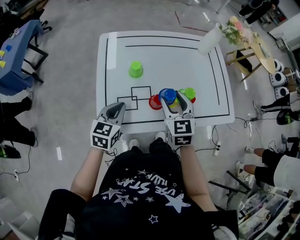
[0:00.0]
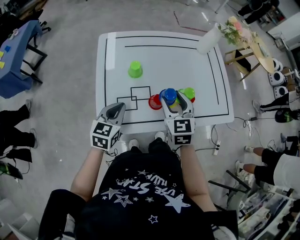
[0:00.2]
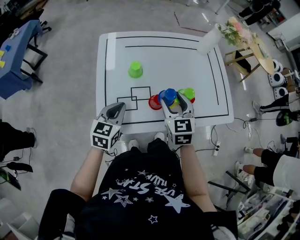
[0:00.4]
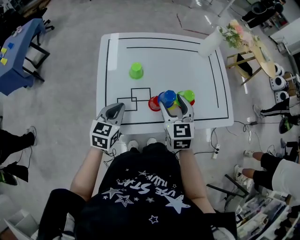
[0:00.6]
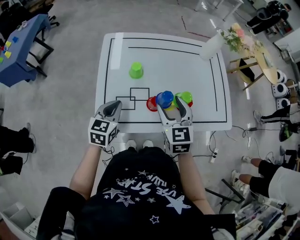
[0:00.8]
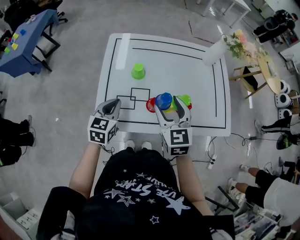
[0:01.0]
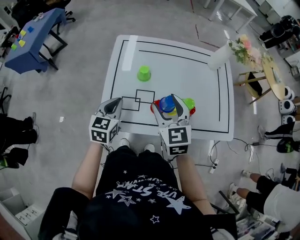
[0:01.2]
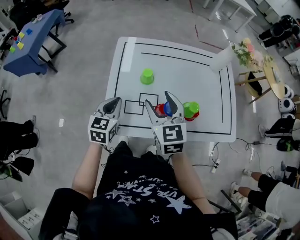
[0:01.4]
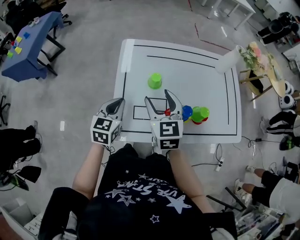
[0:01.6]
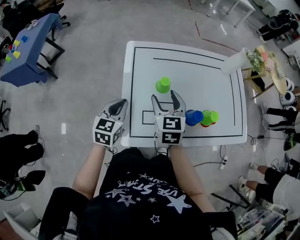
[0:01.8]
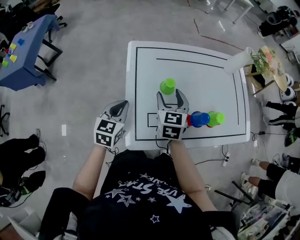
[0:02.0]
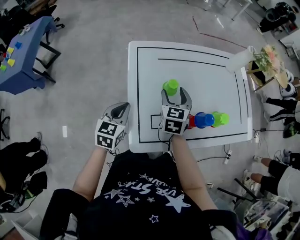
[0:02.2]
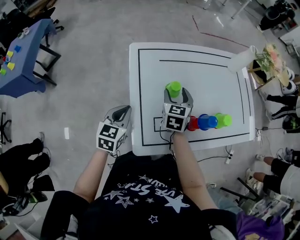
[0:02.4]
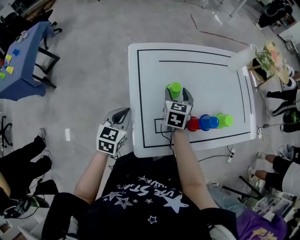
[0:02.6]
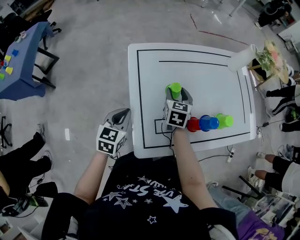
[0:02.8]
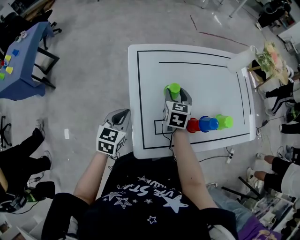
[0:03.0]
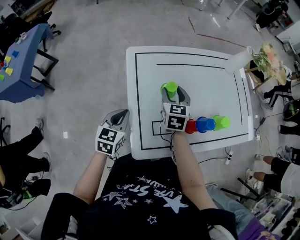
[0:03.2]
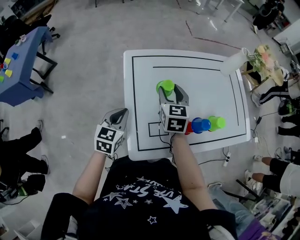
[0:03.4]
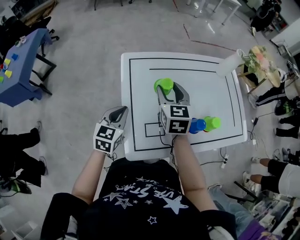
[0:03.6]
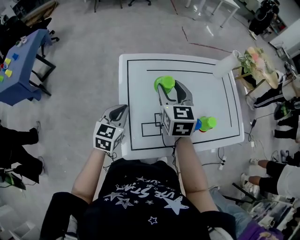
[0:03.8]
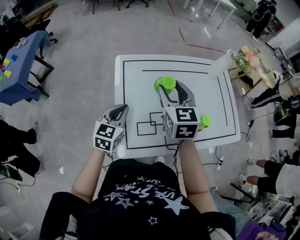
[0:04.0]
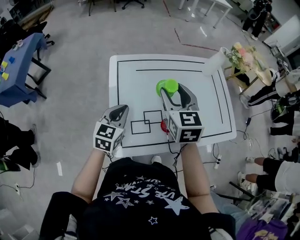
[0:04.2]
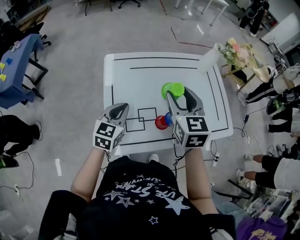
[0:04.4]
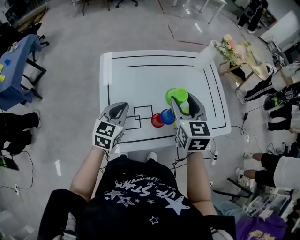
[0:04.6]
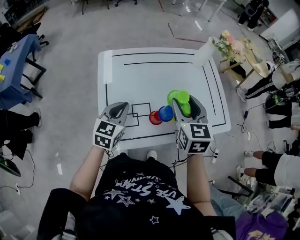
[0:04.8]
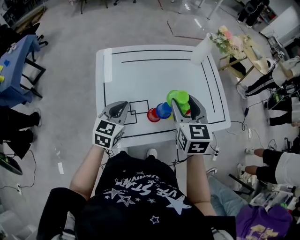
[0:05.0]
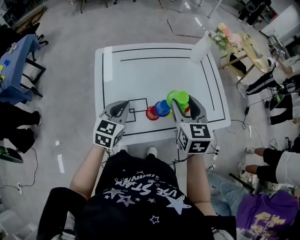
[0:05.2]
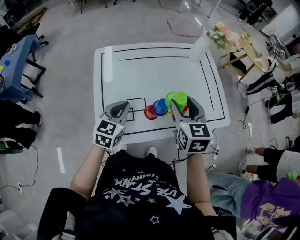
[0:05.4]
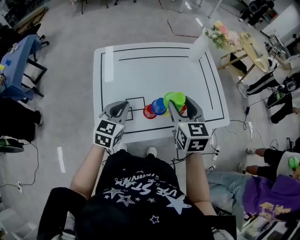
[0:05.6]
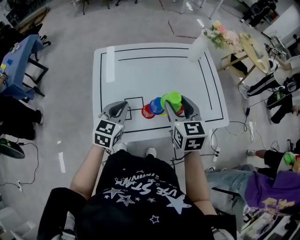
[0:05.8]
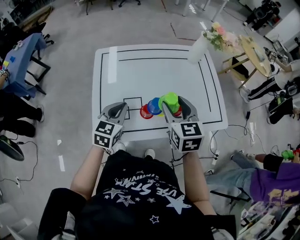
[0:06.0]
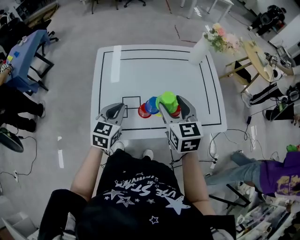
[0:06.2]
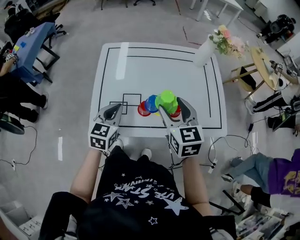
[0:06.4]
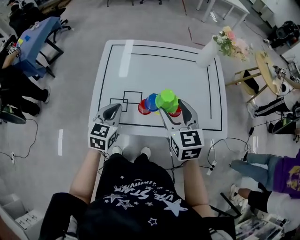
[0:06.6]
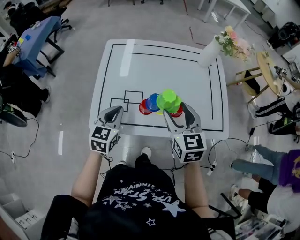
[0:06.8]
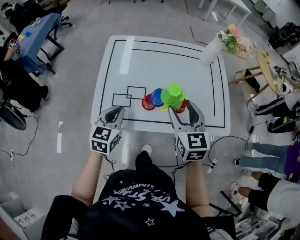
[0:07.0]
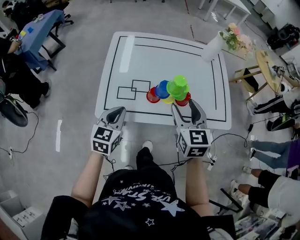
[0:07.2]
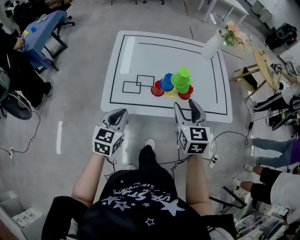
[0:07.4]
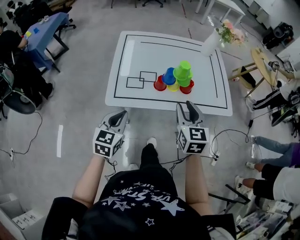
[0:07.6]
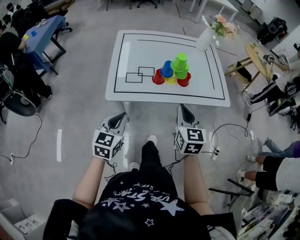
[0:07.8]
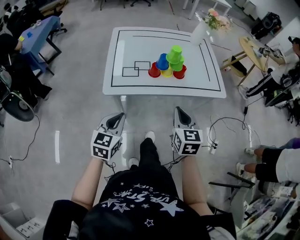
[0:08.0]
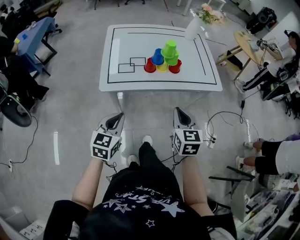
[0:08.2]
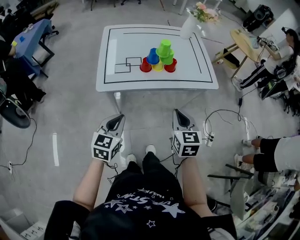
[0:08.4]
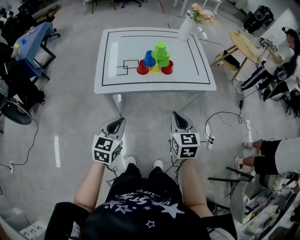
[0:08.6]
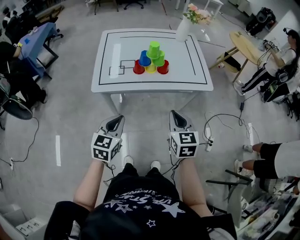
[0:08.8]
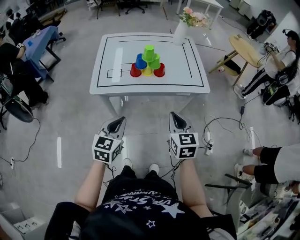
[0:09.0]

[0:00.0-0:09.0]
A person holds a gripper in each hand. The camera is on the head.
0.0 to 1.6 s: The left gripper moves to the left, some 10 cm; the right gripper heads to the left, covering about 15 cm.
1.6 to 3.0 s: The right gripper goes about 20 cm downward and forward, and turns by approximately 30 degrees; the left gripper heads to the left and downward, covering about 10 cm.
3.0 to 4.4 s: The right gripper goes roughly 25 cm upward and to the right, while the left gripper is displaced to the right and upward by roughly 15 cm.
4.4 to 6.0 s: The left gripper is displaced to the right by approximately 10 cm. Meanwhile the right gripper travels to the right, downward and backward by roughly 15 cm.
6.0 to 7.6 s: The two grippers go roughly 20 cm backward.
7.6 to 9.0 s: The left gripper shifts about 20 cm to the right and backward. The right gripper goes about 20 cm backward and to the right, and closes its fingers.

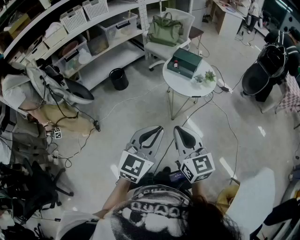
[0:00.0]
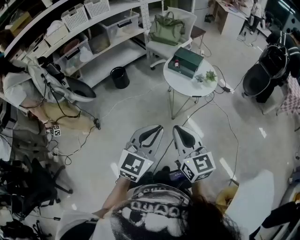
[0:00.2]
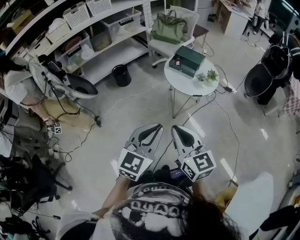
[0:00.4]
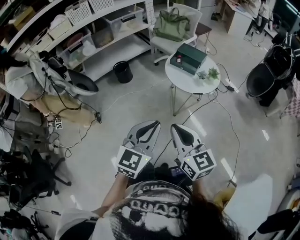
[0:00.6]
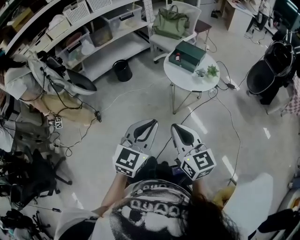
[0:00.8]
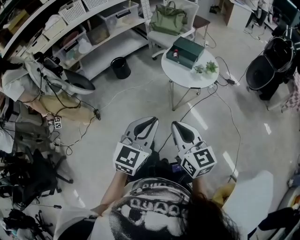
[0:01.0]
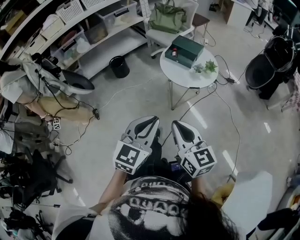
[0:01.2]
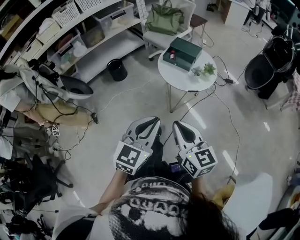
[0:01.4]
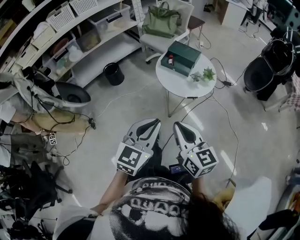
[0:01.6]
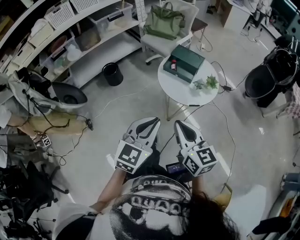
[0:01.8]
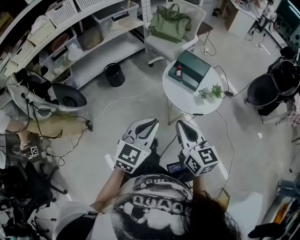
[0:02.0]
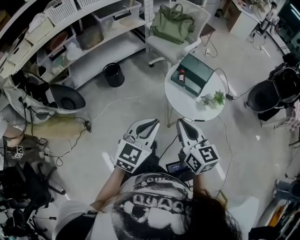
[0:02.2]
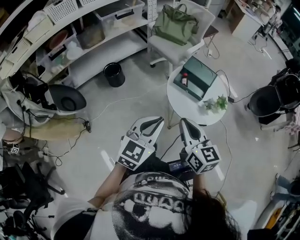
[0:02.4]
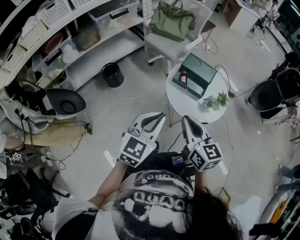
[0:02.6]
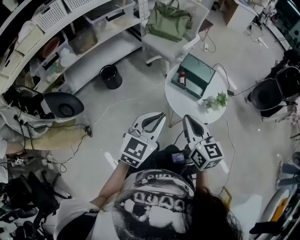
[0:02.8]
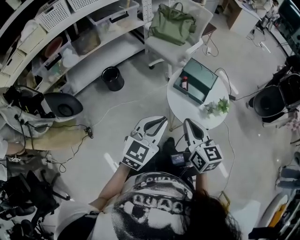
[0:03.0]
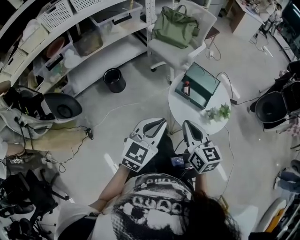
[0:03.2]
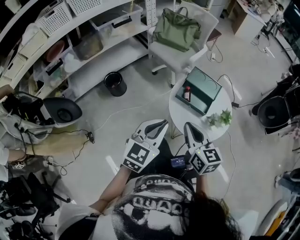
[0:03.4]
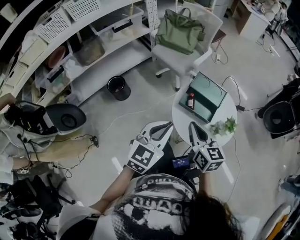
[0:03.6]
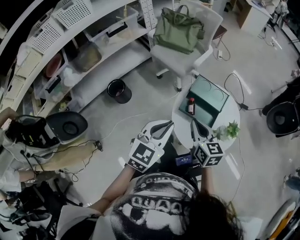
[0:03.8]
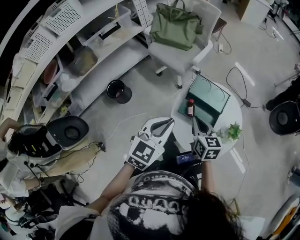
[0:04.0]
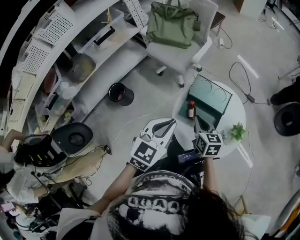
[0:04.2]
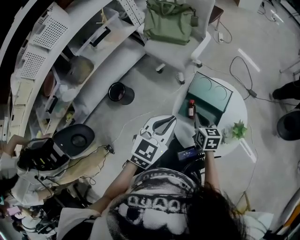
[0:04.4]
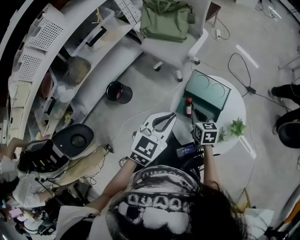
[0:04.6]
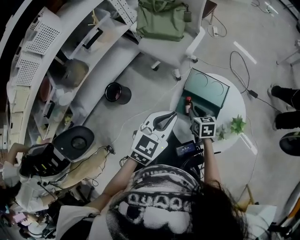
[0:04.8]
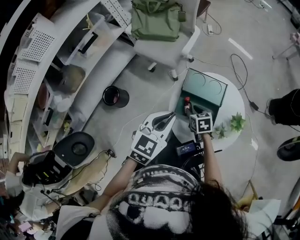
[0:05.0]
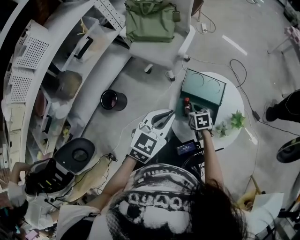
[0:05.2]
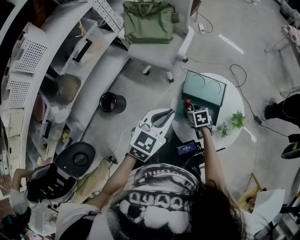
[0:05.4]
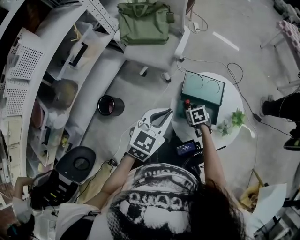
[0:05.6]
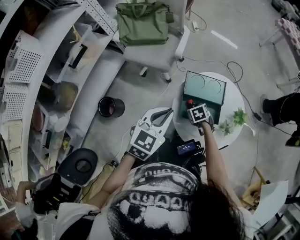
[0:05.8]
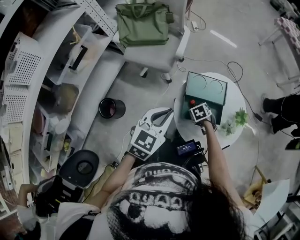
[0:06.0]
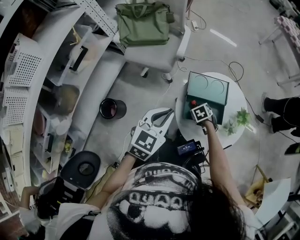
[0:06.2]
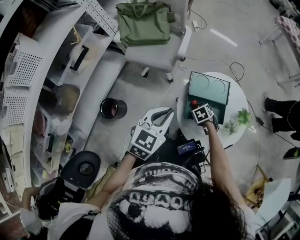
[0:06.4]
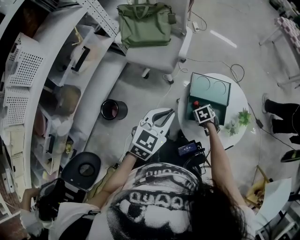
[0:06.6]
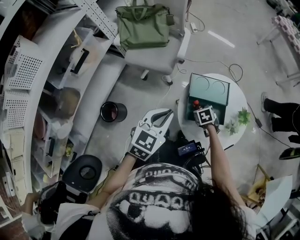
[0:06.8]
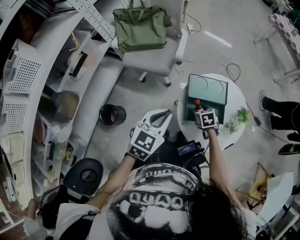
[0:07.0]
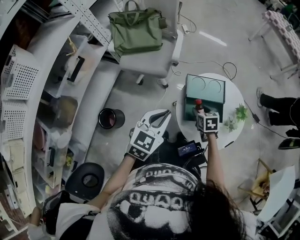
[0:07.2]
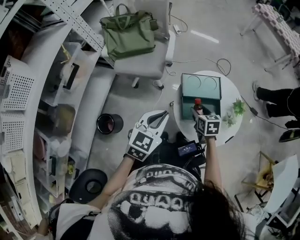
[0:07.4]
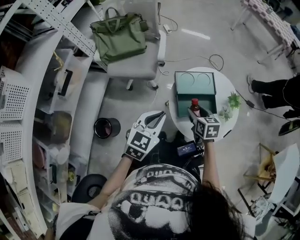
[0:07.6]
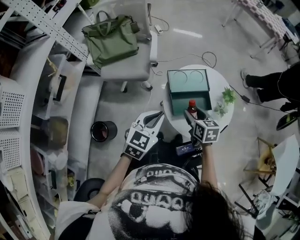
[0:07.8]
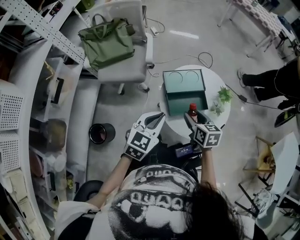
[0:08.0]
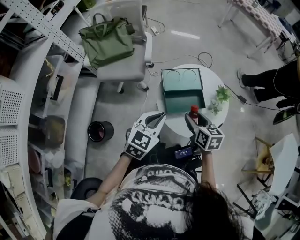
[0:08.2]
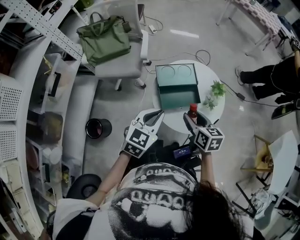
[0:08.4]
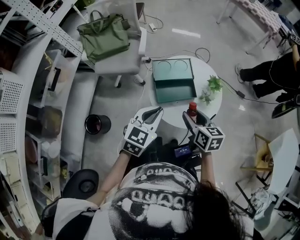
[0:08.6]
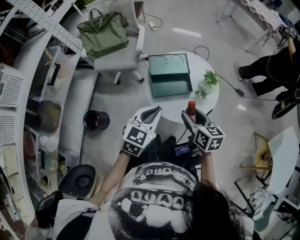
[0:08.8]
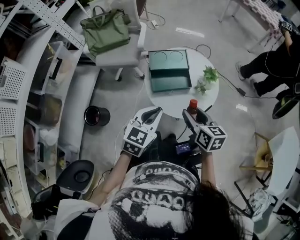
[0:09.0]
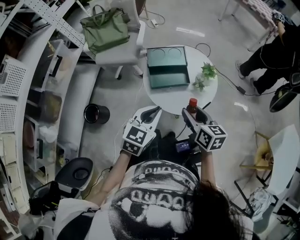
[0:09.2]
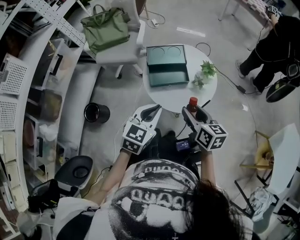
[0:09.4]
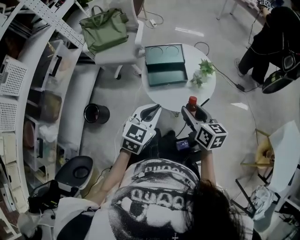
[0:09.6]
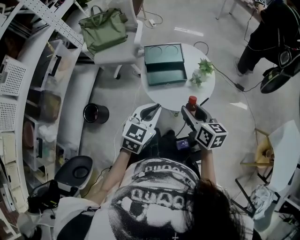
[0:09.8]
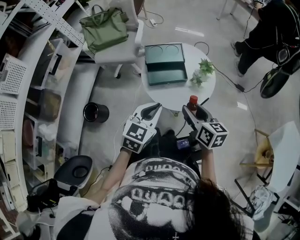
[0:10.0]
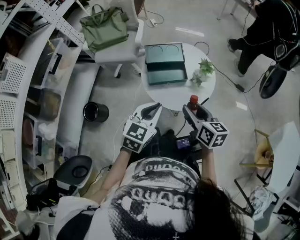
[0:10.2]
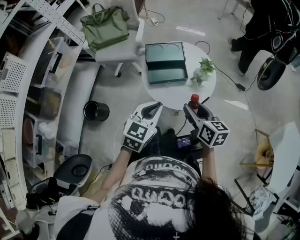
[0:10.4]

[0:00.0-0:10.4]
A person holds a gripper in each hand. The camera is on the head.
0.0 to 1.4 s: The left gripper travels forward and to the right by some 10 cm. Meanwhile the right gripper heads to the right, covering some 5 cm.
1.4 to 3.0 s: Both grippers move forward, approximately 30 cm.
3.0 to 4.4 s: The left gripper is displaced forward by roughly 25 cm. The right gripper travels forward and downward by approximately 35 cm, and swivels roughly 20 degrees.
4.4 to 6.0 s: The left gripper shifts by roughly 10 cm; the right gripper travels downward by some 15 cm, tips its fingers downward by roughly 40 degrees, and opens.
6.0 to 7.4 s: The right gripper travels upward by some 15 cm, and changes its angle by approximately 40 degrees.
7.4 to 9.0 s: The right gripper goes approximately 25 cm backward, to the right and upward, and turns by roughly 20 degrees, while the left gripper moves to the right and backward, some 20 cm.
9.0 to 10.4 s: The grippers stay close to where they were, moving slightly.

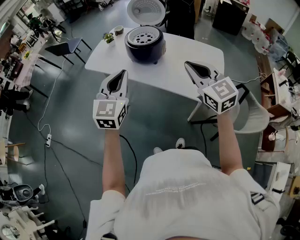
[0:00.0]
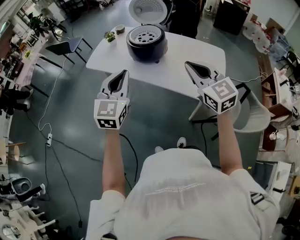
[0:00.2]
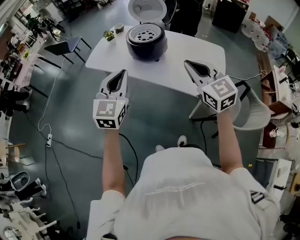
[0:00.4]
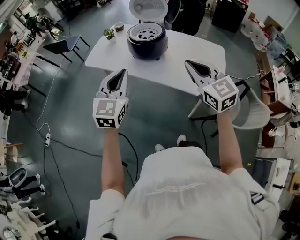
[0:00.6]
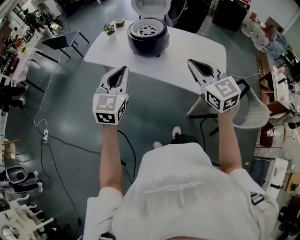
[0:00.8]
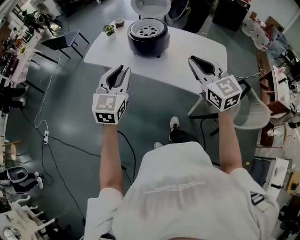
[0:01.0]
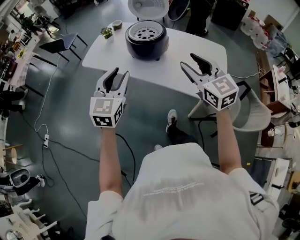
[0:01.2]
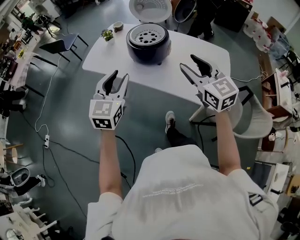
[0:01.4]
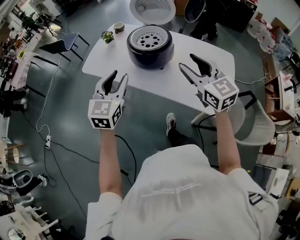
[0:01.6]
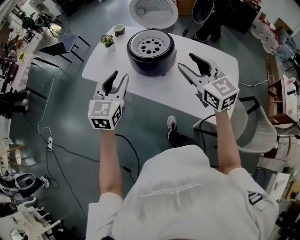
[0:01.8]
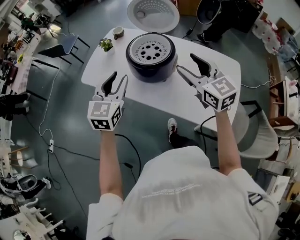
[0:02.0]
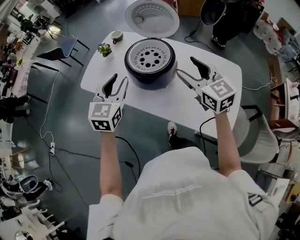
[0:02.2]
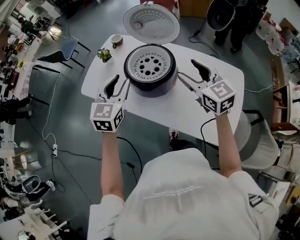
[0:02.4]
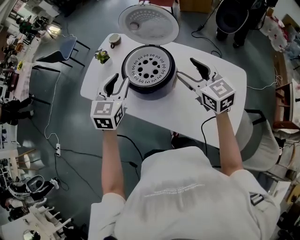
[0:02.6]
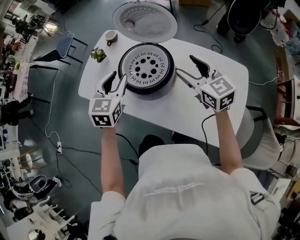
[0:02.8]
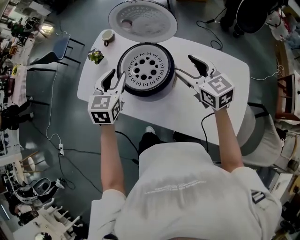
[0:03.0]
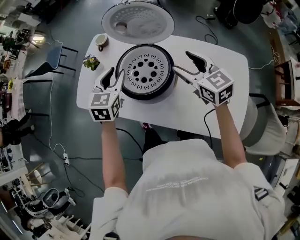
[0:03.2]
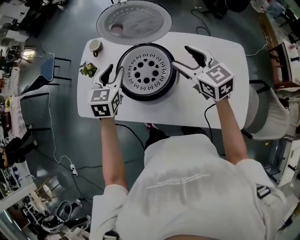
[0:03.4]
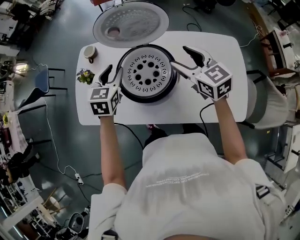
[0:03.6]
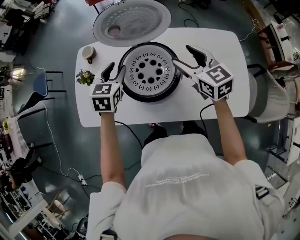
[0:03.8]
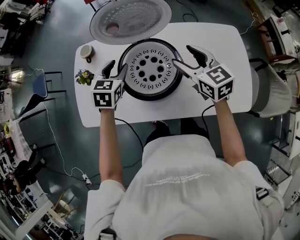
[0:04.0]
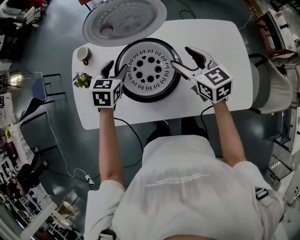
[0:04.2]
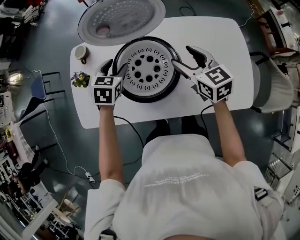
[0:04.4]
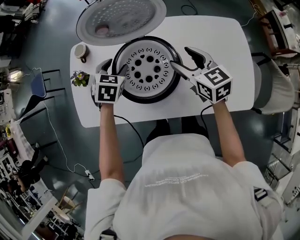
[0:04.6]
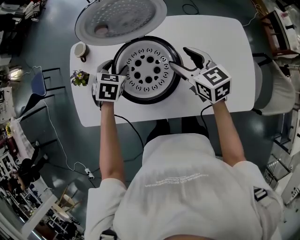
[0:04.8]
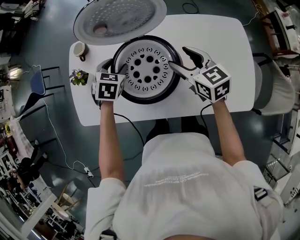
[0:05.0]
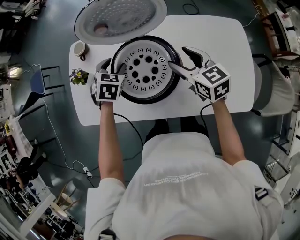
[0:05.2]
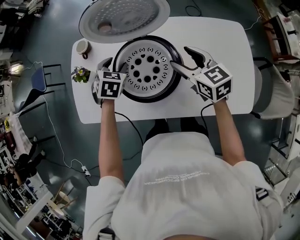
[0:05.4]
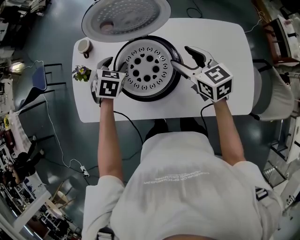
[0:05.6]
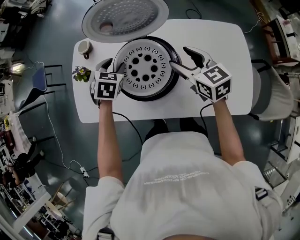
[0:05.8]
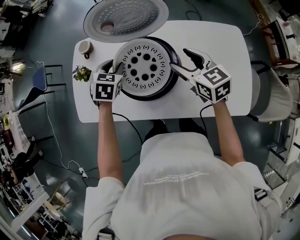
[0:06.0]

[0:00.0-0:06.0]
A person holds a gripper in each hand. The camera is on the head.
0.0 to 1.6 s: The left gripper shifts approximately 15 cm forward and downward, and opens. The right gripper travels forward by approximately 15 cm, and opens up.
1.6 to 3.0 s: The grippers both shift forward by approximately 25 cm.
3.0 to 4.4 s: The left gripper ends up roughly 15 cm from where it was, and changes its angle by about 30 degrees, while the right gripper changes place by approximately 5 cm, and swivels approximately 30 degrees.
4.4 to 6.0 s: The left gripper closes its fingers.
